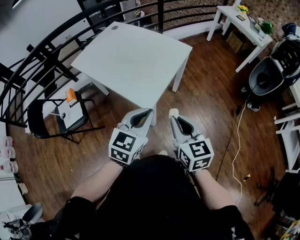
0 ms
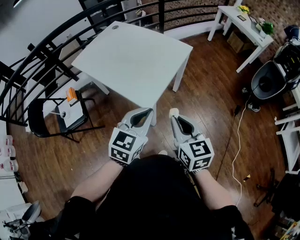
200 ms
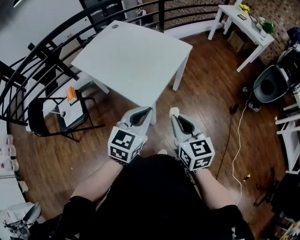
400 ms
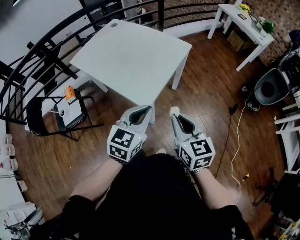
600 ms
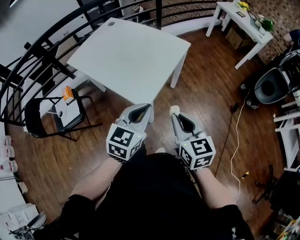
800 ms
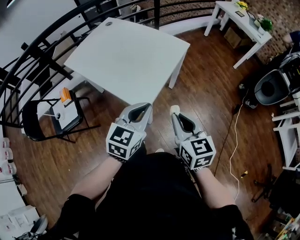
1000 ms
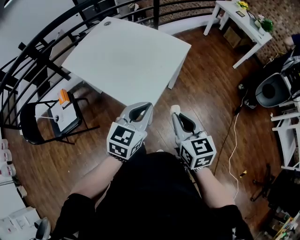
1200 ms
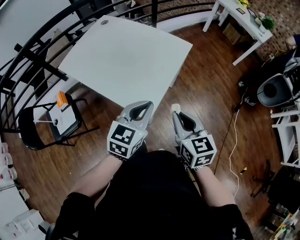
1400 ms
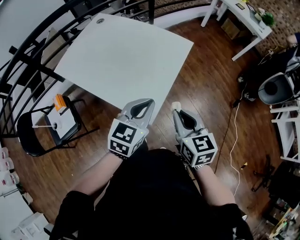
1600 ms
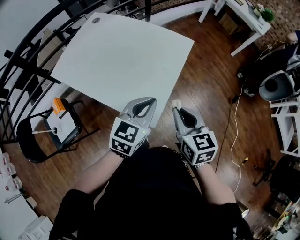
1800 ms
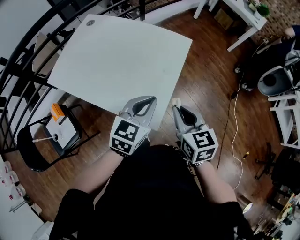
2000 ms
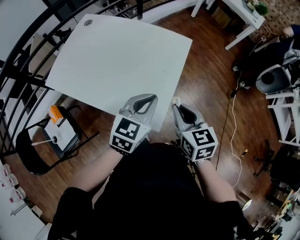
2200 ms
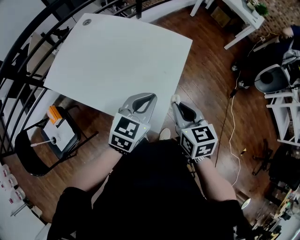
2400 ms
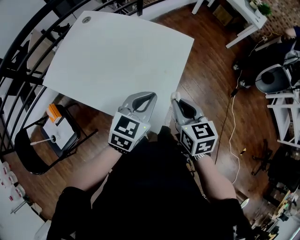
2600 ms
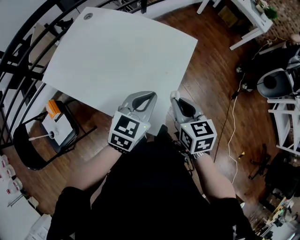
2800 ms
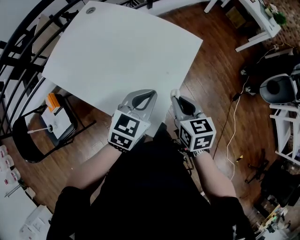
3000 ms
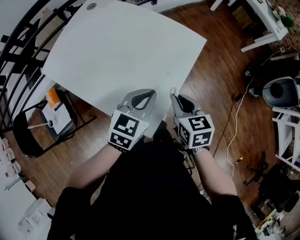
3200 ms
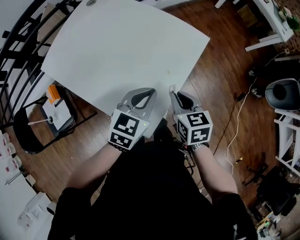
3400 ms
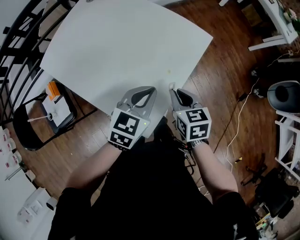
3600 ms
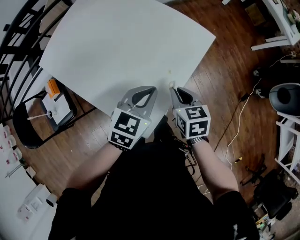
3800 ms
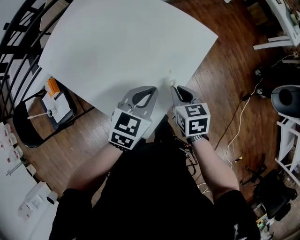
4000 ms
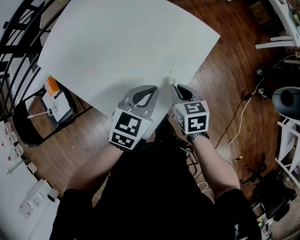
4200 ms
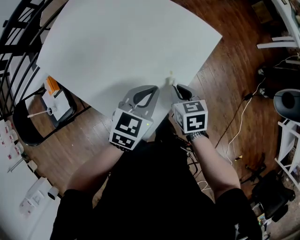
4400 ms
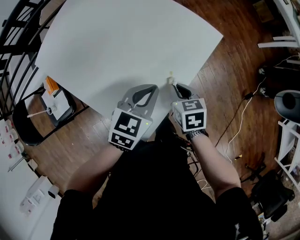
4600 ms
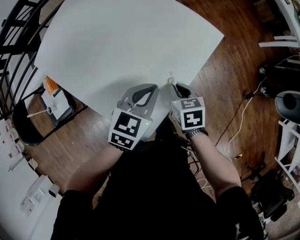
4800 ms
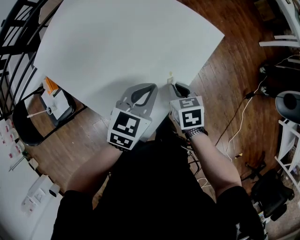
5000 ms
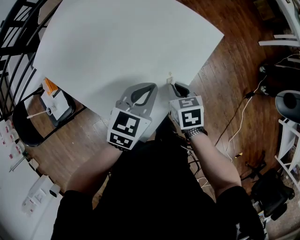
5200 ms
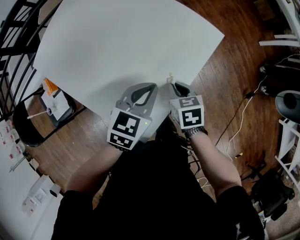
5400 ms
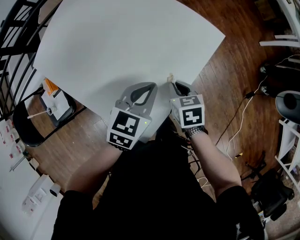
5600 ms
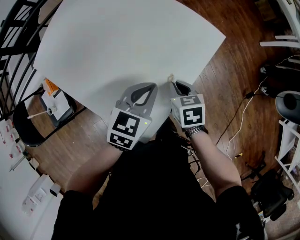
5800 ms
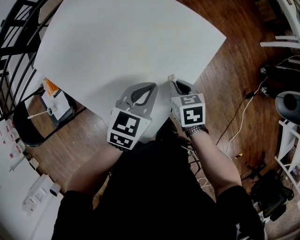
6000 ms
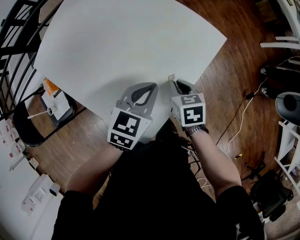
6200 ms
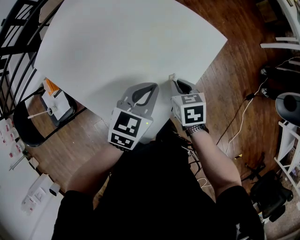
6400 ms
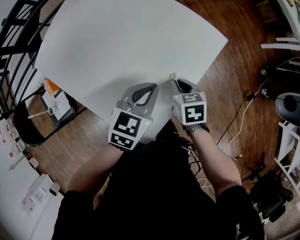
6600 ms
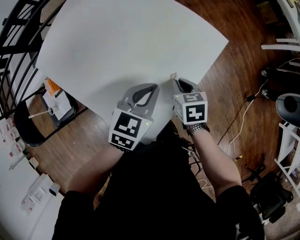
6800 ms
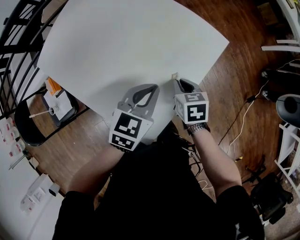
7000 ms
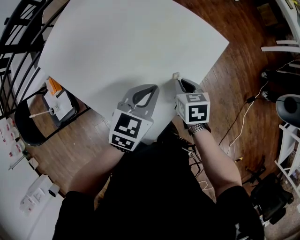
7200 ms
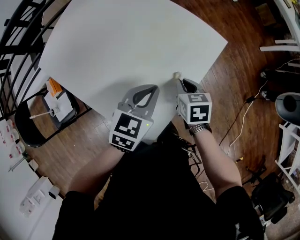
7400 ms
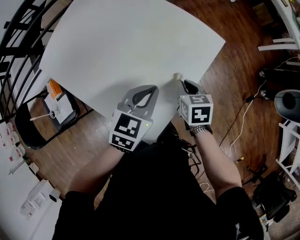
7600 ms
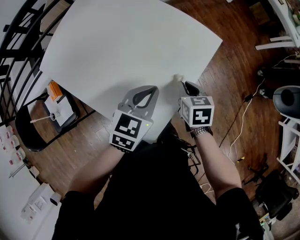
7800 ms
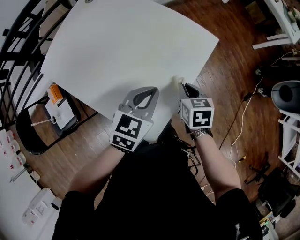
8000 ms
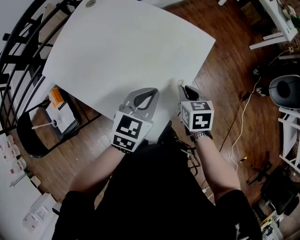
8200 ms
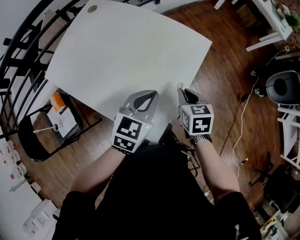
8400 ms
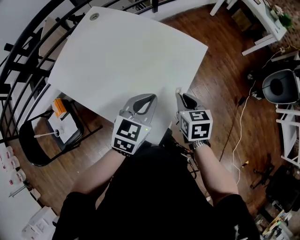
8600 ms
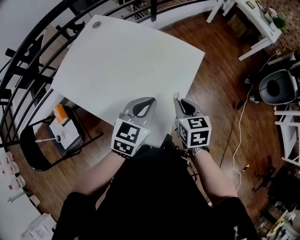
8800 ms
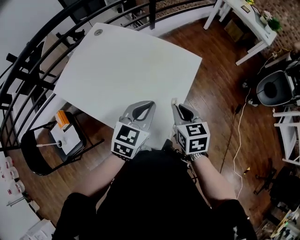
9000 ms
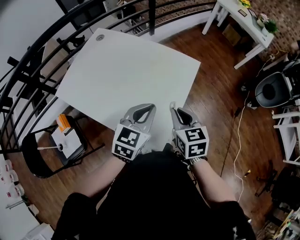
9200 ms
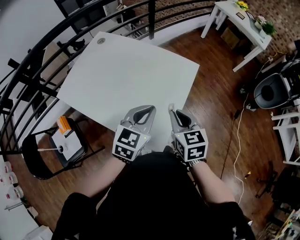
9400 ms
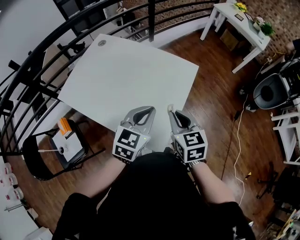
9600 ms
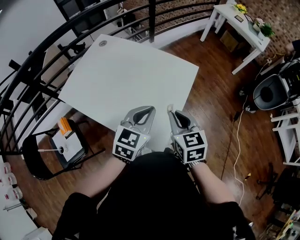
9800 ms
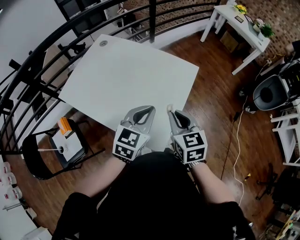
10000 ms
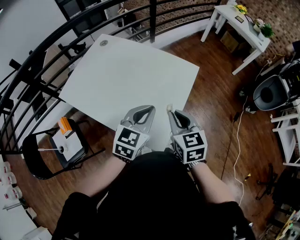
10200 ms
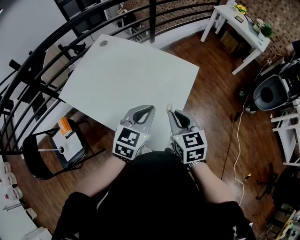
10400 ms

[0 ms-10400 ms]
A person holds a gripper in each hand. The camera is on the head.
0 ms to 1400 ms: The grippers both shift forward by roughly 10 cm.
1400 ms to 3000 ms: Both grippers move forward, approximately 15 cm.
3000 ms to 4400 ms: The right gripper shifts roughly 15 cm downward and forward, while the left gripper is displaced downward and forward by some 10 cm.
4400 ms to 7400 ms: There are only small adjustments of the grippers.
7400 ms to 9000 ms: The left gripper moves upward and backward, roughly 10 cm; the right gripper goes roughly 20 cm upward and backward.
9000 ms to 10400 ms: The right gripper moves upward, roughly 5 cm.

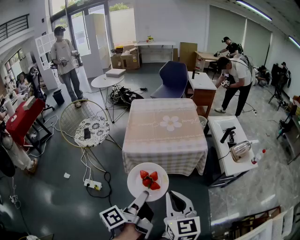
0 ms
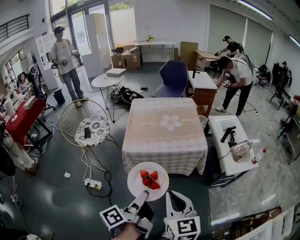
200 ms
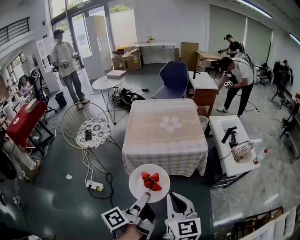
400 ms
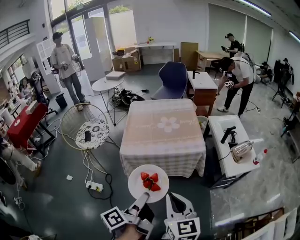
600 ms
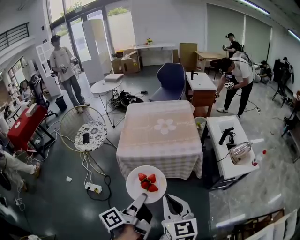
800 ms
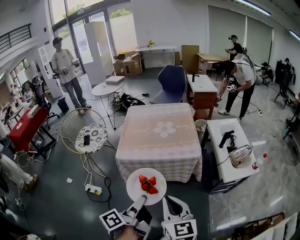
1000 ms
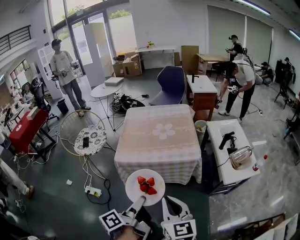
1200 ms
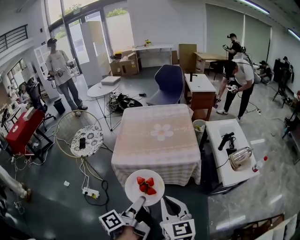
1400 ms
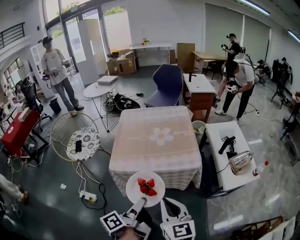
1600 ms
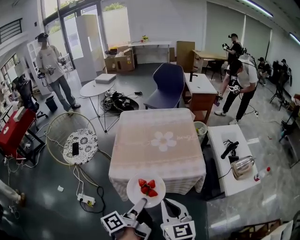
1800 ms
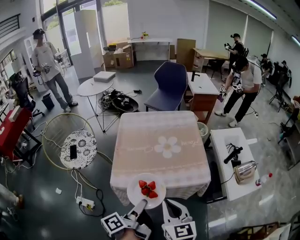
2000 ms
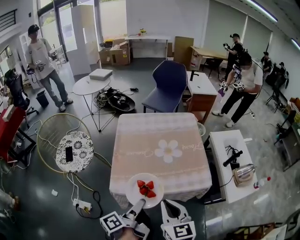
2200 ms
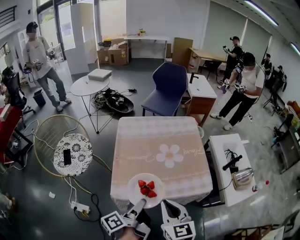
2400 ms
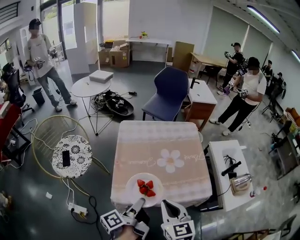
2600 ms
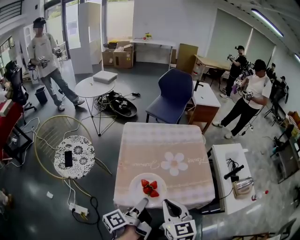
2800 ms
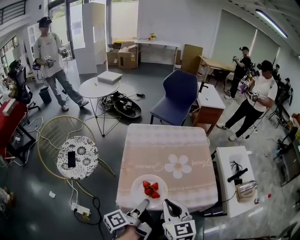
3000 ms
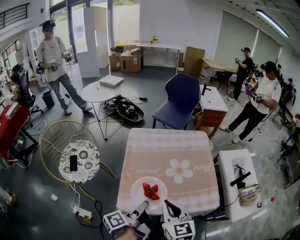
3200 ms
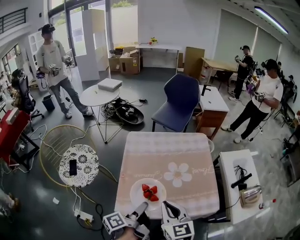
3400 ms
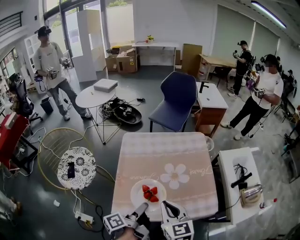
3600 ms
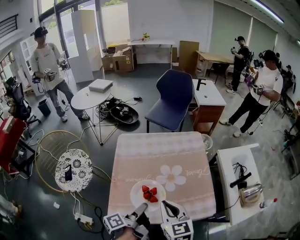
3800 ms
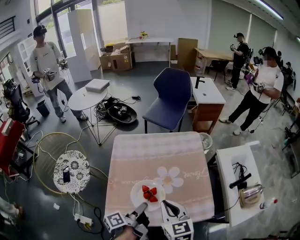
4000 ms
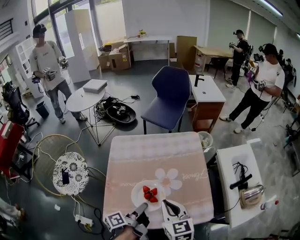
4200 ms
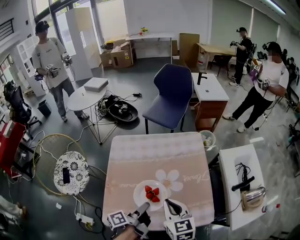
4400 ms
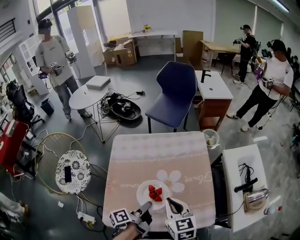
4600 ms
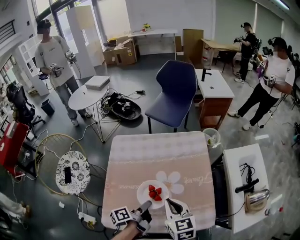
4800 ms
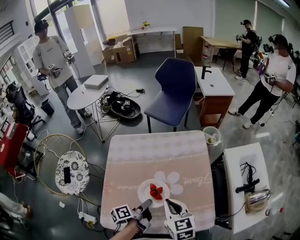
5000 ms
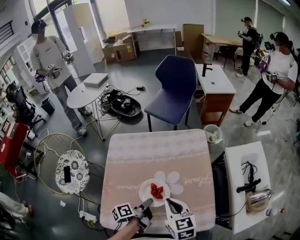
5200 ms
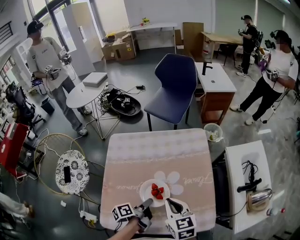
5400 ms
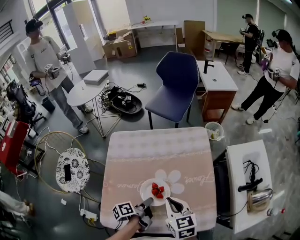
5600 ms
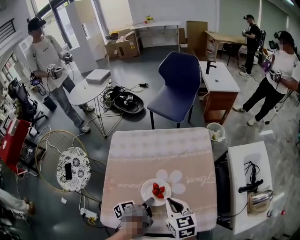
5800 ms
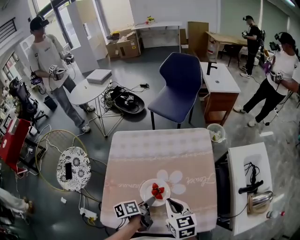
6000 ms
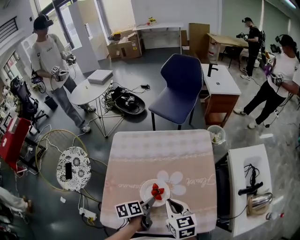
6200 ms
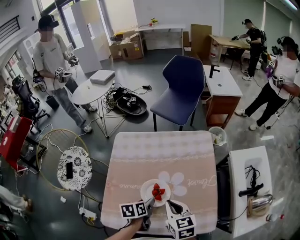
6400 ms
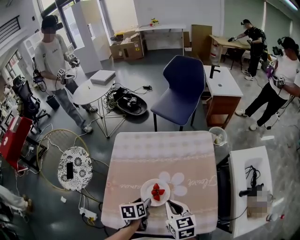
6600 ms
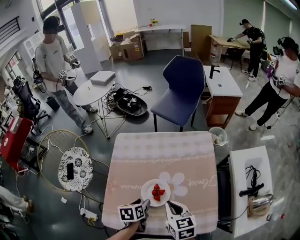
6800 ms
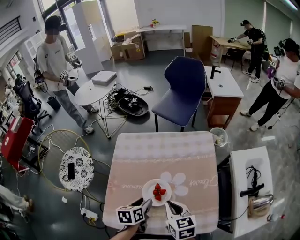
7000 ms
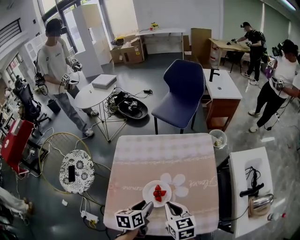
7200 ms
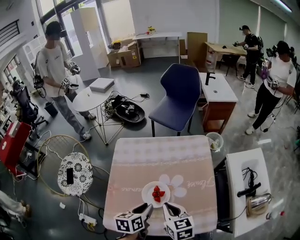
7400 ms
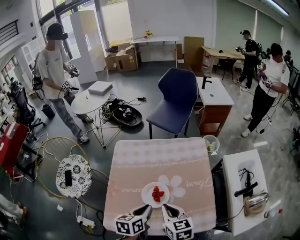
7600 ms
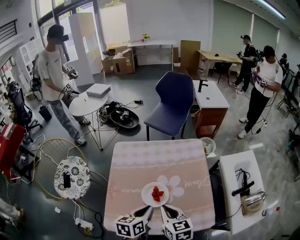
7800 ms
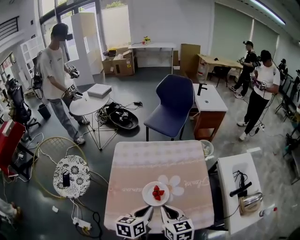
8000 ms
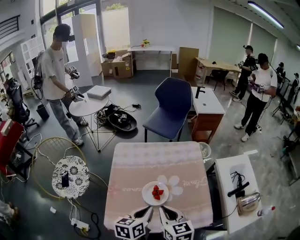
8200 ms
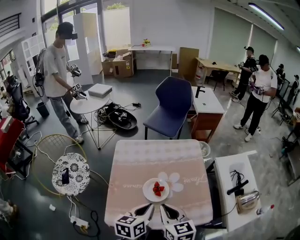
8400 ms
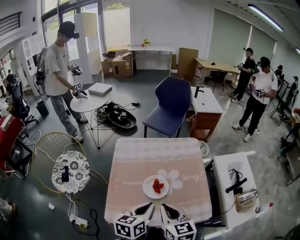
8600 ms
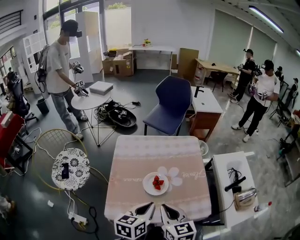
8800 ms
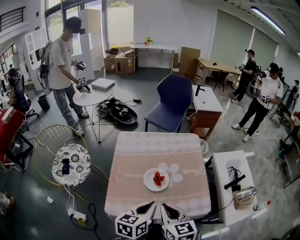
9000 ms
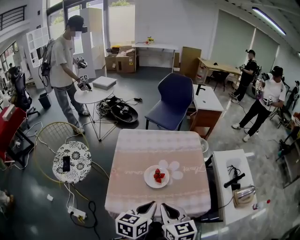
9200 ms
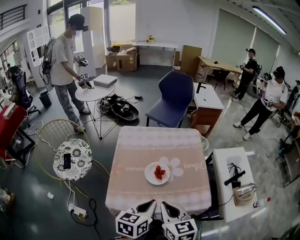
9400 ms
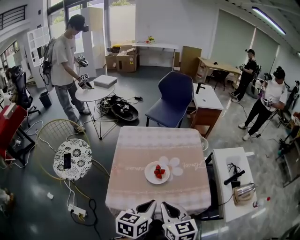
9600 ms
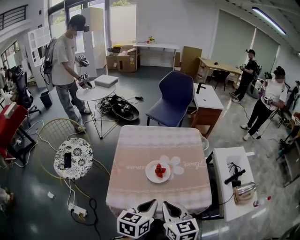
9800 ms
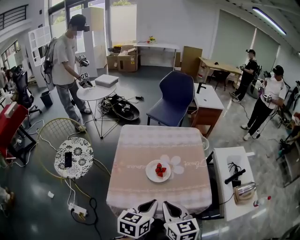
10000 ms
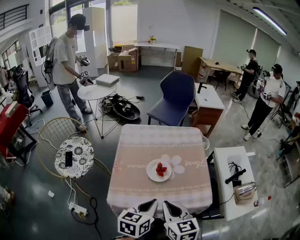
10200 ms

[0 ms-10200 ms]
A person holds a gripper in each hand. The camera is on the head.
0 ms to 1400 ms: The right gripper changes place by roughly 10 cm.
1400 ms to 3000 ms: The right gripper shifts by some 35 cm.
3000 ms to 4400 ms: The right gripper moves approximately 20 cm.
4400 ms to 5800 ms: The right gripper moves downward, roughly 5 cm.
7200 ms to 8800 ms: The right gripper moves approximately 15 cm.
8800 ms to 10200 ms: The right gripper shifts by some 5 cm.

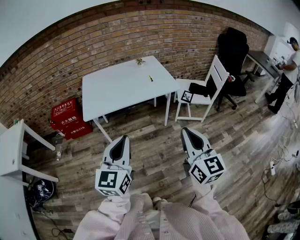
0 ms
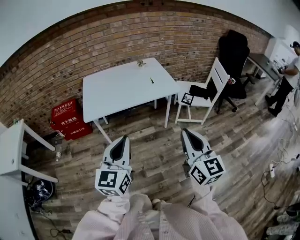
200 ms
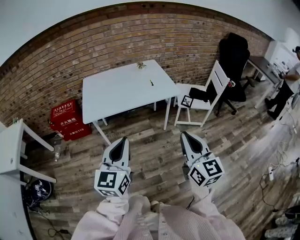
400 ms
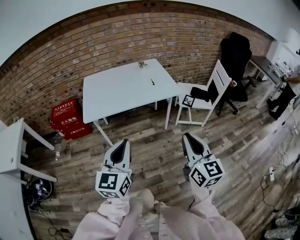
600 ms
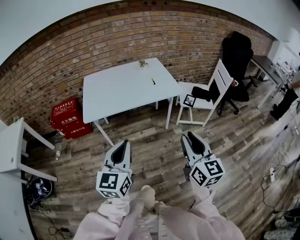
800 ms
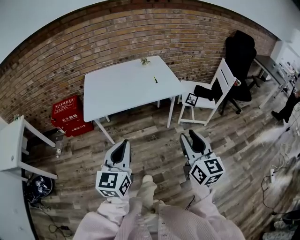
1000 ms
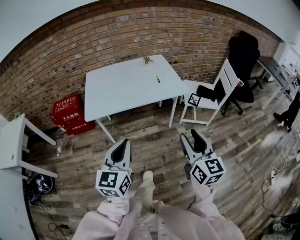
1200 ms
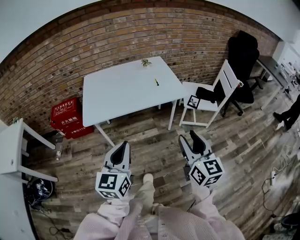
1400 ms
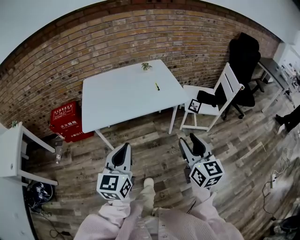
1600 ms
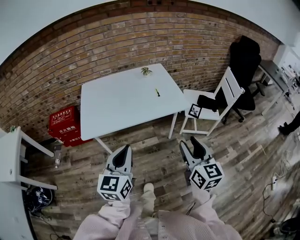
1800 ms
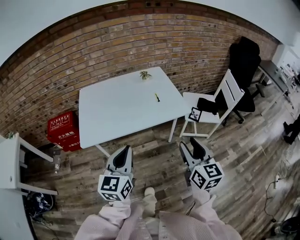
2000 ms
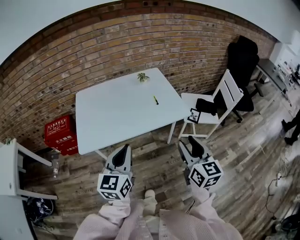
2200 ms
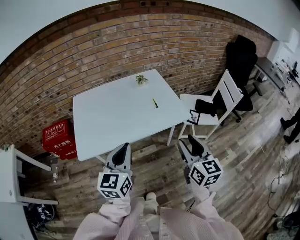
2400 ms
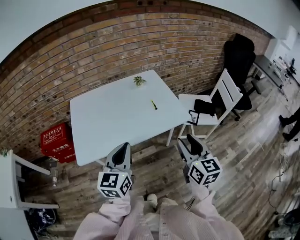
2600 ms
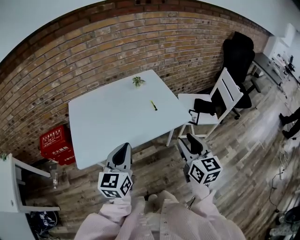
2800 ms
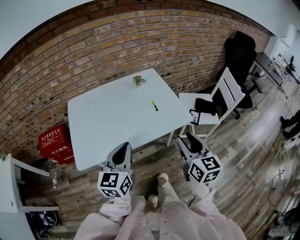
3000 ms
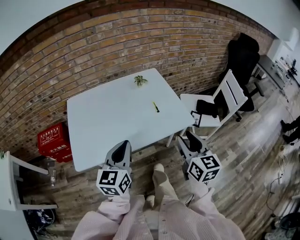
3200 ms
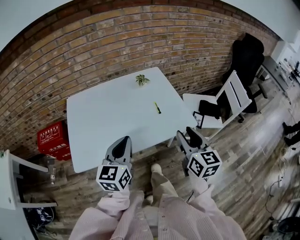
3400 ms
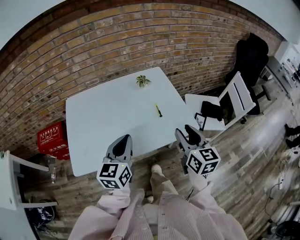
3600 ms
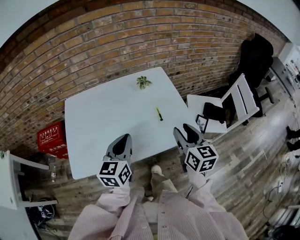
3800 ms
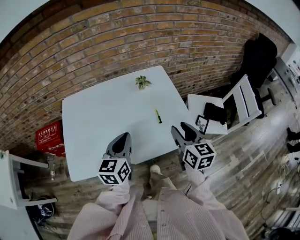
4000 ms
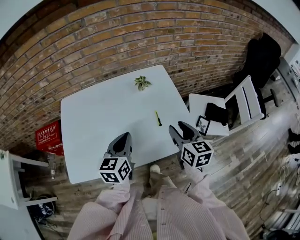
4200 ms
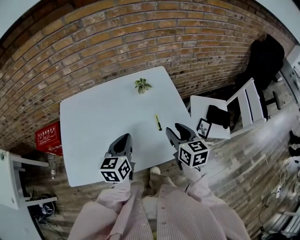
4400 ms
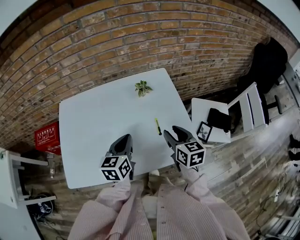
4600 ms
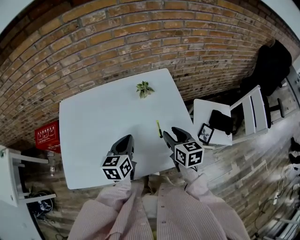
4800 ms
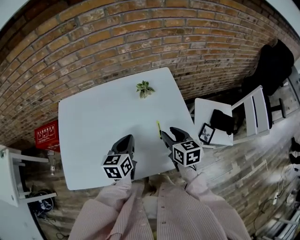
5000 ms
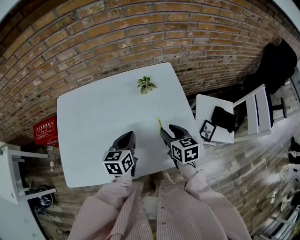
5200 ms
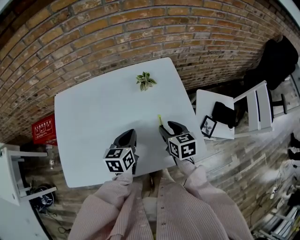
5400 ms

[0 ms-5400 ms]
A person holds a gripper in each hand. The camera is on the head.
0 ms to 1400 ms: The left gripper is displaced forward by some 5 cm; the right gripper travels forward and downward by roughly 10 cm, and opens.
1400 ms to 2800 ms: The two grippers go roughly 25 cm forward.
2800 ms to 4000 ms: The two grippers go roughly 20 cm forward.
4000 ms to 5400 ms: The grippers both shift downward and forward by roughly 20 cm. The right gripper swivels some 20 degrees.
